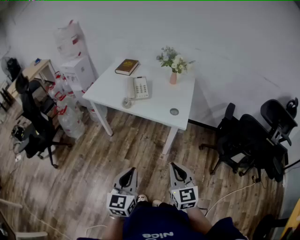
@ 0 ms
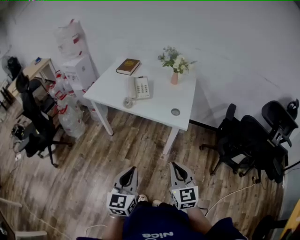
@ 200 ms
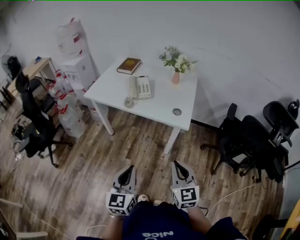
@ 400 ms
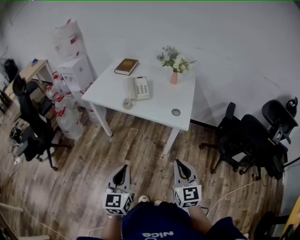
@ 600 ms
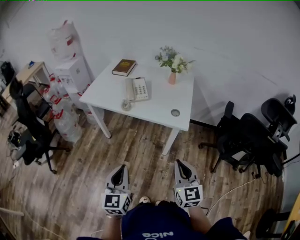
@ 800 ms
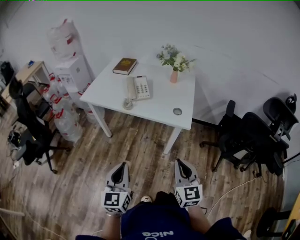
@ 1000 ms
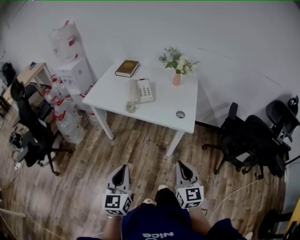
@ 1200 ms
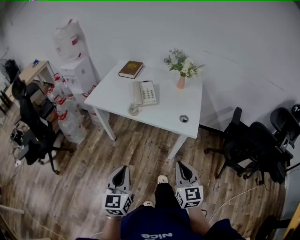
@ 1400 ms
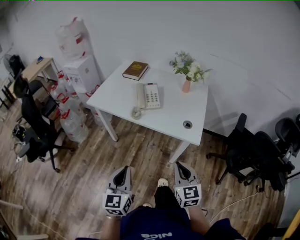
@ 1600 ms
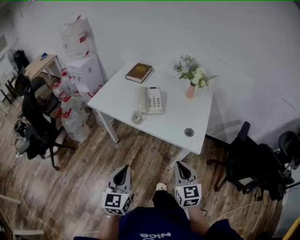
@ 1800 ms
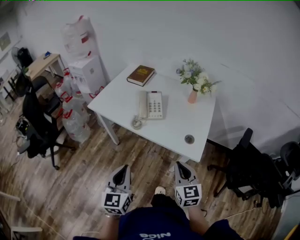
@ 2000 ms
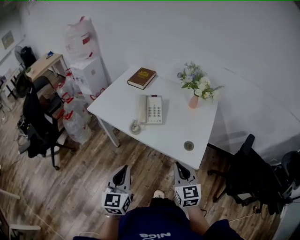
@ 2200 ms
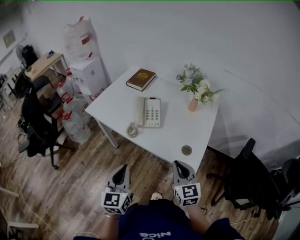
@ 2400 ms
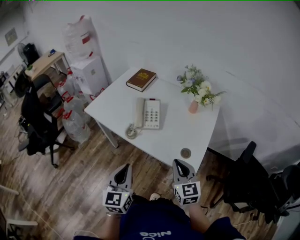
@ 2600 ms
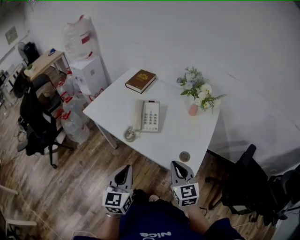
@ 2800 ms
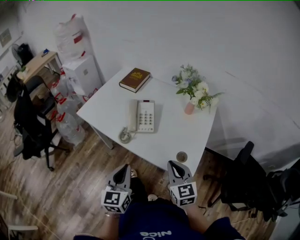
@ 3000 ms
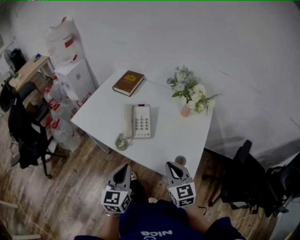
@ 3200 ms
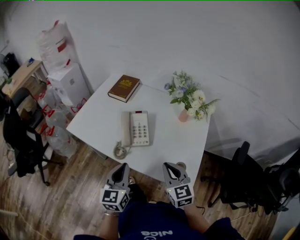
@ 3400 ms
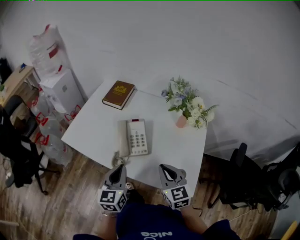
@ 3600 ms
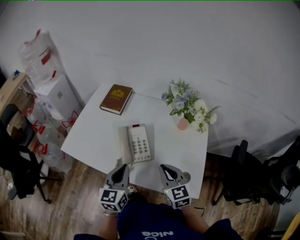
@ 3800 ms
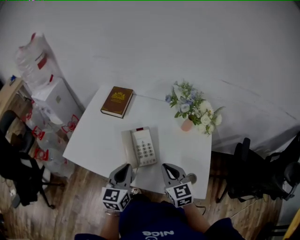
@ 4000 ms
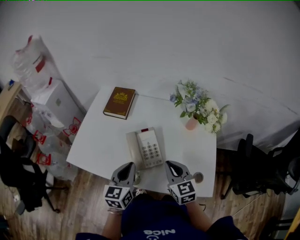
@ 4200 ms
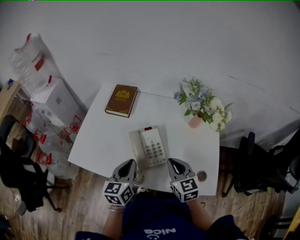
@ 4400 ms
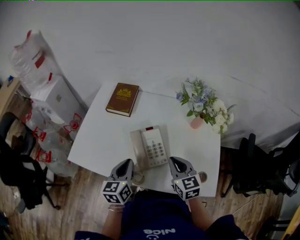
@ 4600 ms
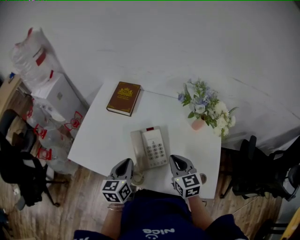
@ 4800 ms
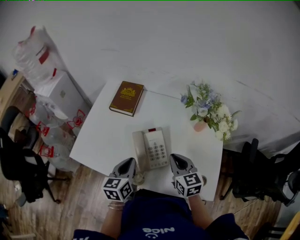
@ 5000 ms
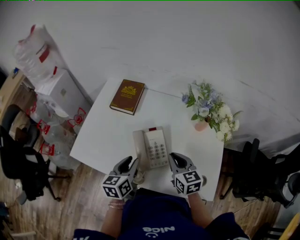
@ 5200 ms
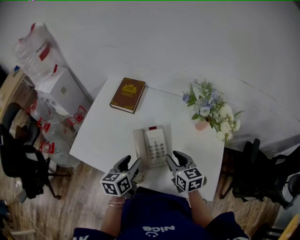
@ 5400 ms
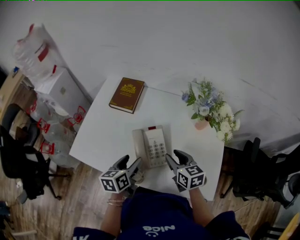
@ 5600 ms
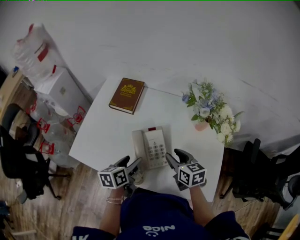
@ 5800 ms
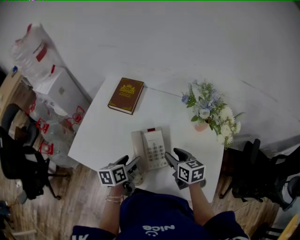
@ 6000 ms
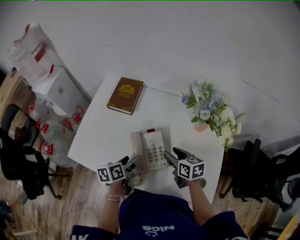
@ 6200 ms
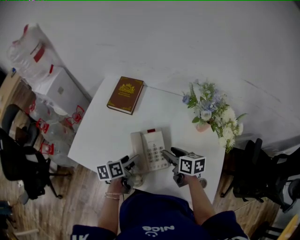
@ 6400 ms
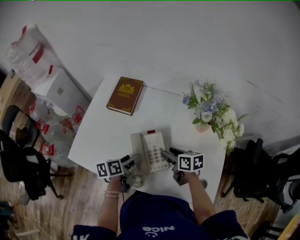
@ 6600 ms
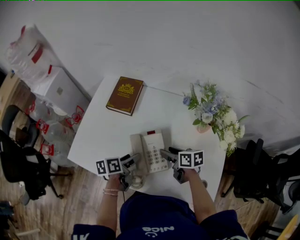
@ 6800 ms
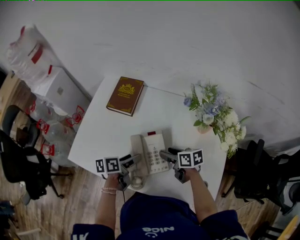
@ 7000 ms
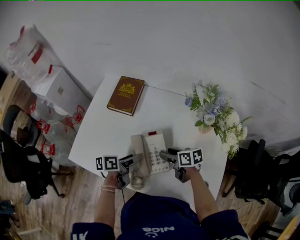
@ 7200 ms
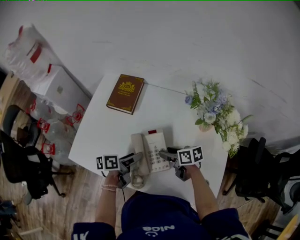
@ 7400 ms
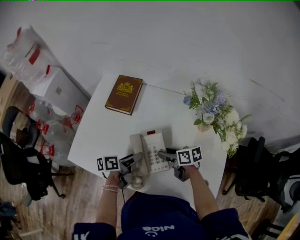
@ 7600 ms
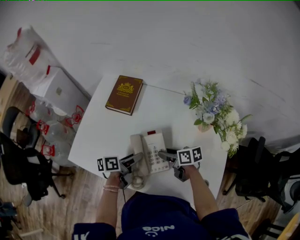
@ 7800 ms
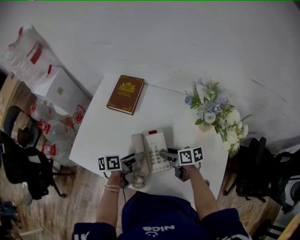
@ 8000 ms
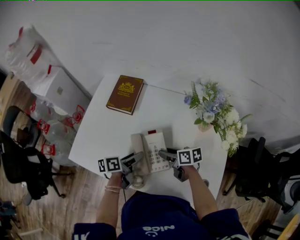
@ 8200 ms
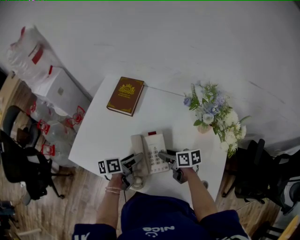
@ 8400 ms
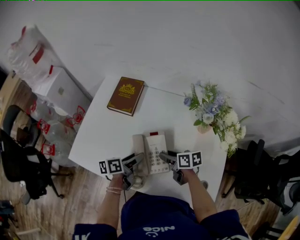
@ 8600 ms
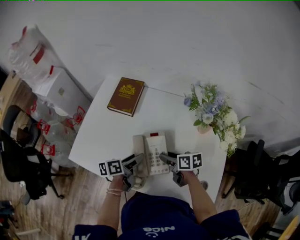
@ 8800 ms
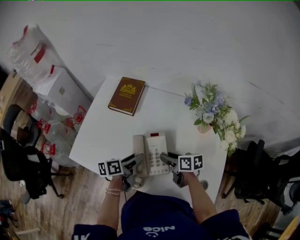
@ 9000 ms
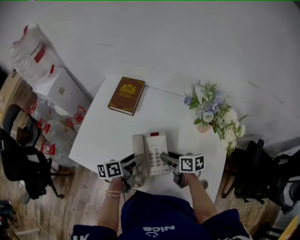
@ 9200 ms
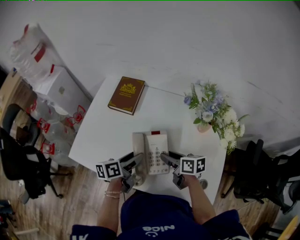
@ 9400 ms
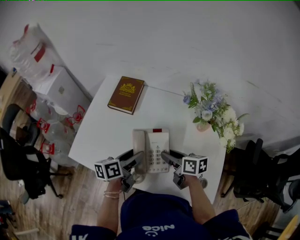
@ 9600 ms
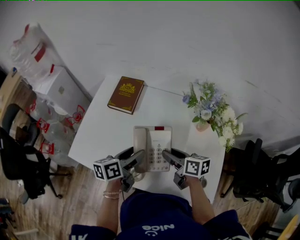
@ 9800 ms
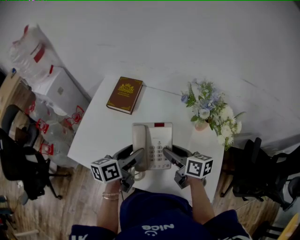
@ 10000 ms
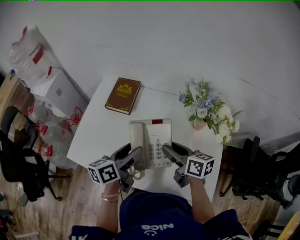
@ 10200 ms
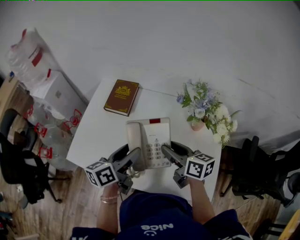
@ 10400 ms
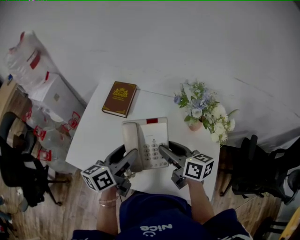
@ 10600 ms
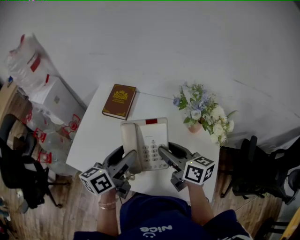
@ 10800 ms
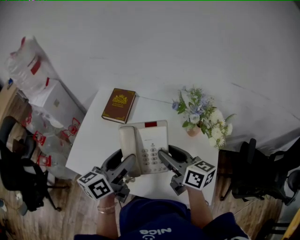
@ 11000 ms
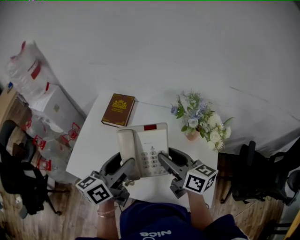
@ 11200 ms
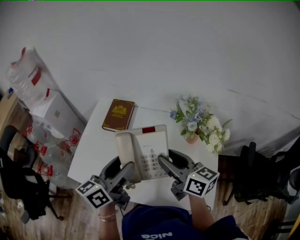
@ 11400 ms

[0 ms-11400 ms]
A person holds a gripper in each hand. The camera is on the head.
0 ms to 1400 ms: The left gripper is displaced to the left and forward by some 10 cm; the right gripper goes some 10 cm forward.
1400 ms to 2800 ms: The left gripper goes some 20 cm forward and to the right, while the right gripper heads forward, covering about 25 cm.
2800 ms to 4200 ms: The left gripper travels forward by some 25 cm, and swivels about 20 degrees; the right gripper heads forward and to the left, covering about 20 cm.
4200 ms to 5600 ms: The right gripper goes some 5 cm forward, turns by about 20 degrees, and opens; the left gripper moves downward, approximately 5 cm, rotates approximately 30 degrees, and opens its fingers.
5600 ms to 7200 ms: The two grippers go roughly 10 cm downward and forward. The right gripper swivels about 30 degrees, and opens up. The left gripper rotates about 30 degrees.
7200 ms to 8600 ms: There are only small adjustments of the grippers.
8600 ms to 10000 ms: Both grippers travel together upward, approximately 10 cm.
10000 ms to 11400 ms: Both grippers travel together upward, approximately 15 cm. The right gripper swivels approximately 20 degrees.

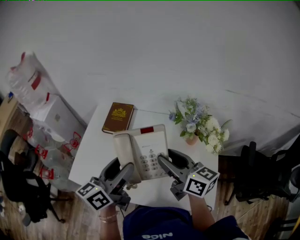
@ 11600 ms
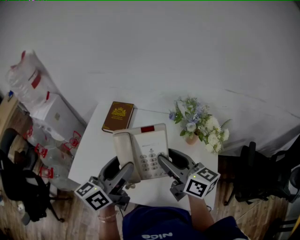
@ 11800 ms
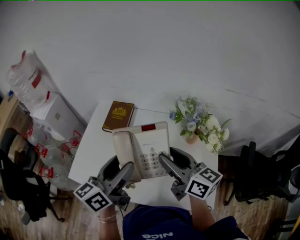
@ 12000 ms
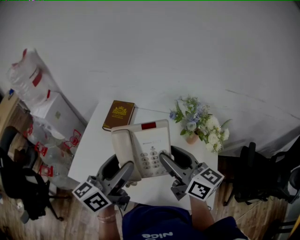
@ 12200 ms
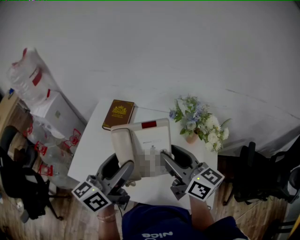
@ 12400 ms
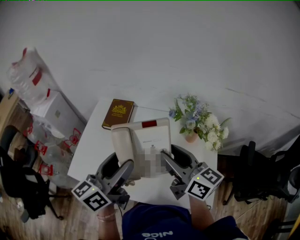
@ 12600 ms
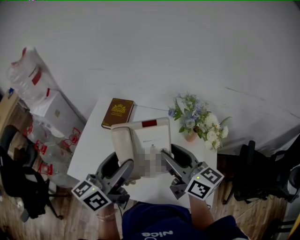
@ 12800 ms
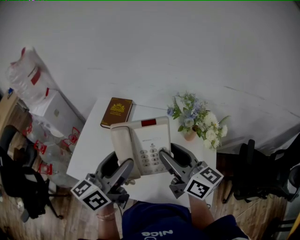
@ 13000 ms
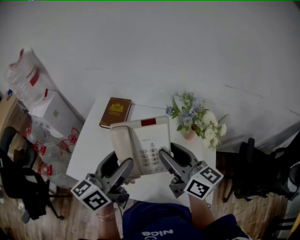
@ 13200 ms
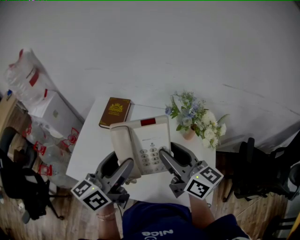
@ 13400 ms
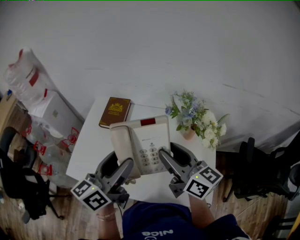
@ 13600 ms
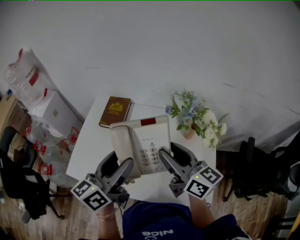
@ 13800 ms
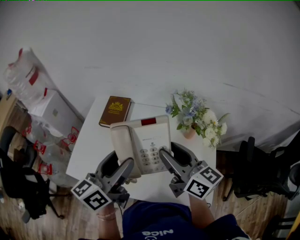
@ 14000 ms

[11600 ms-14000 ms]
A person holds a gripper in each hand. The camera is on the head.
11600 ms to 12800 ms: The grippers move only a little.
12800 ms to 14000 ms: Both grippers stay about where they are.

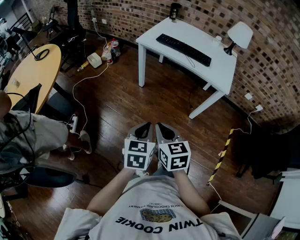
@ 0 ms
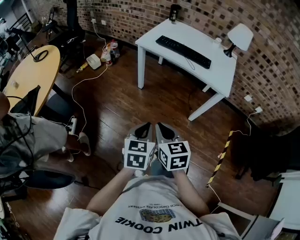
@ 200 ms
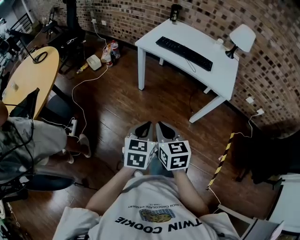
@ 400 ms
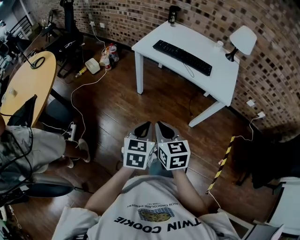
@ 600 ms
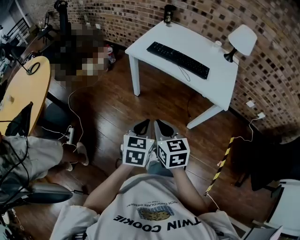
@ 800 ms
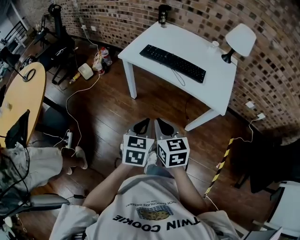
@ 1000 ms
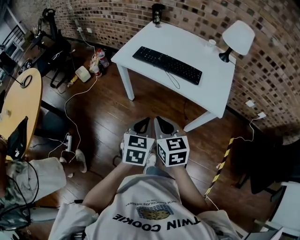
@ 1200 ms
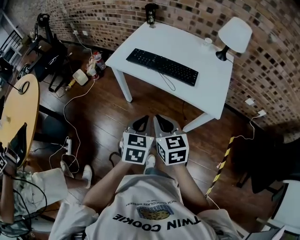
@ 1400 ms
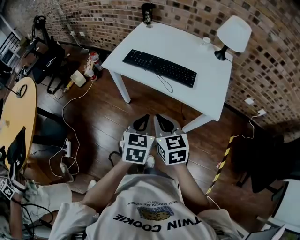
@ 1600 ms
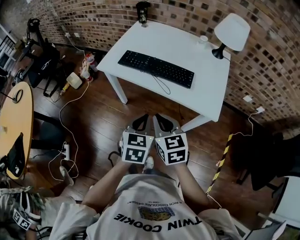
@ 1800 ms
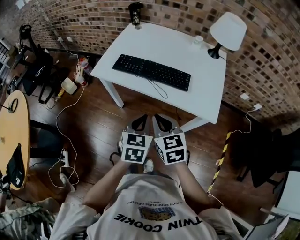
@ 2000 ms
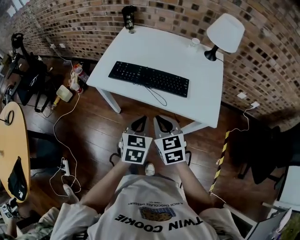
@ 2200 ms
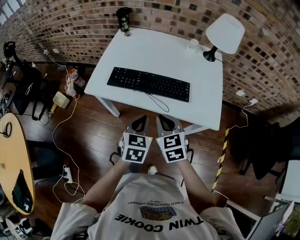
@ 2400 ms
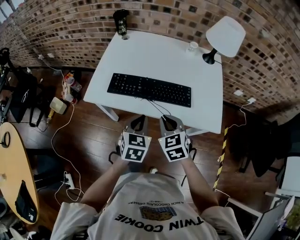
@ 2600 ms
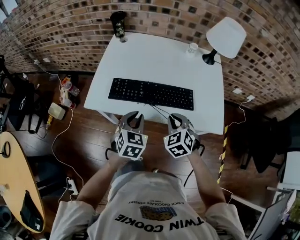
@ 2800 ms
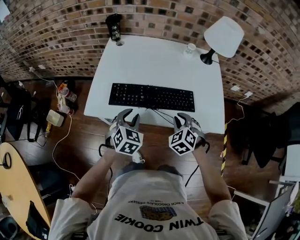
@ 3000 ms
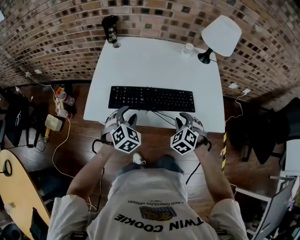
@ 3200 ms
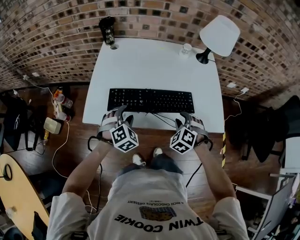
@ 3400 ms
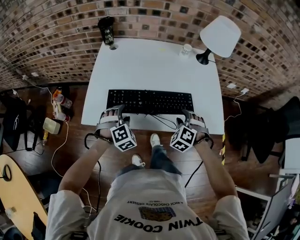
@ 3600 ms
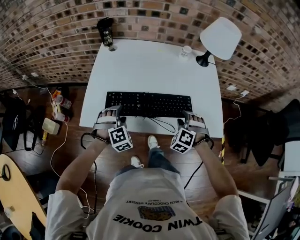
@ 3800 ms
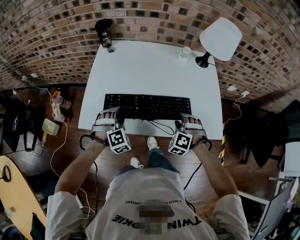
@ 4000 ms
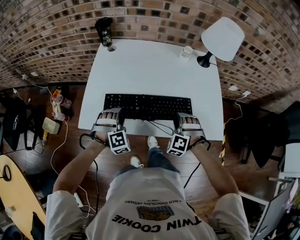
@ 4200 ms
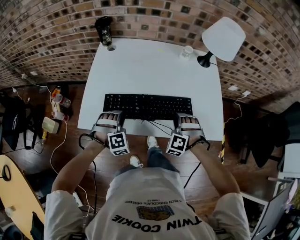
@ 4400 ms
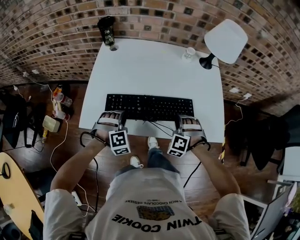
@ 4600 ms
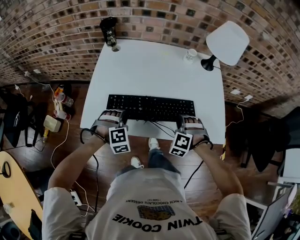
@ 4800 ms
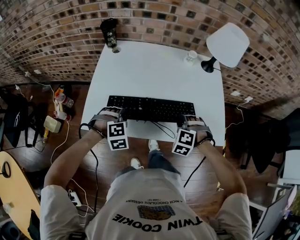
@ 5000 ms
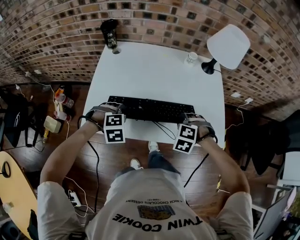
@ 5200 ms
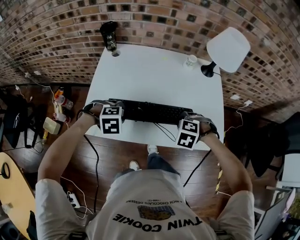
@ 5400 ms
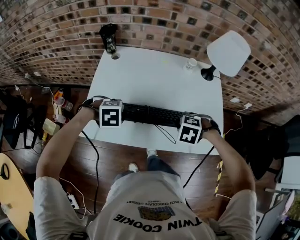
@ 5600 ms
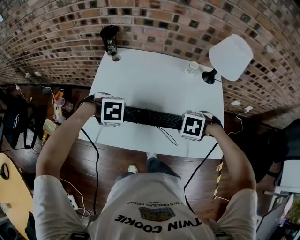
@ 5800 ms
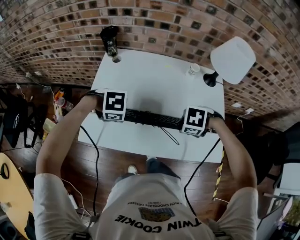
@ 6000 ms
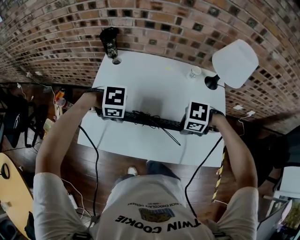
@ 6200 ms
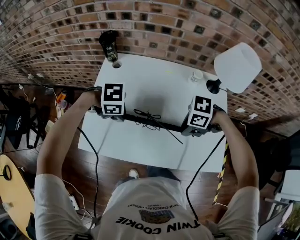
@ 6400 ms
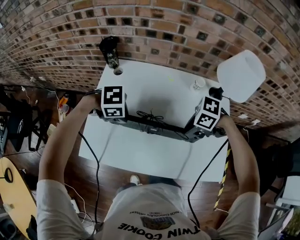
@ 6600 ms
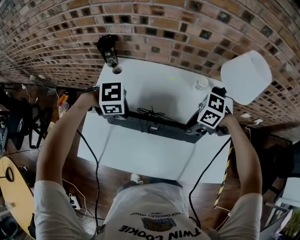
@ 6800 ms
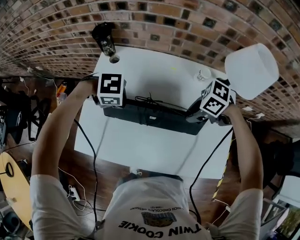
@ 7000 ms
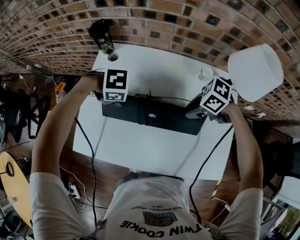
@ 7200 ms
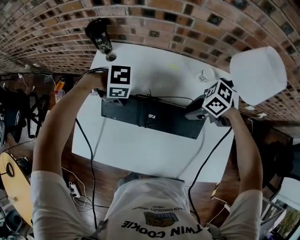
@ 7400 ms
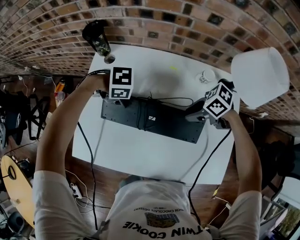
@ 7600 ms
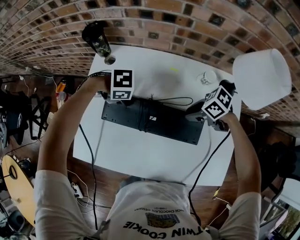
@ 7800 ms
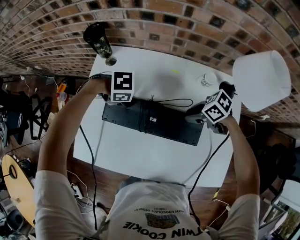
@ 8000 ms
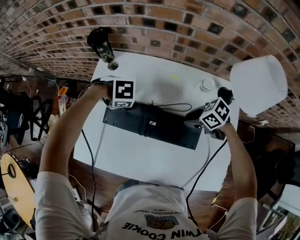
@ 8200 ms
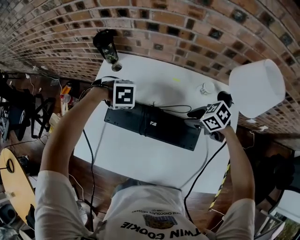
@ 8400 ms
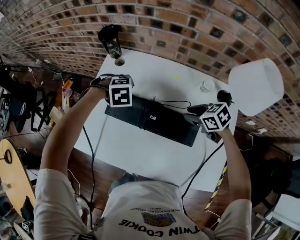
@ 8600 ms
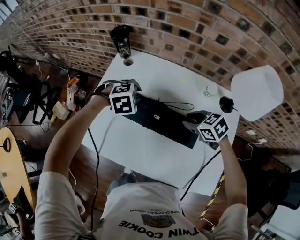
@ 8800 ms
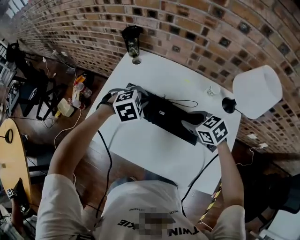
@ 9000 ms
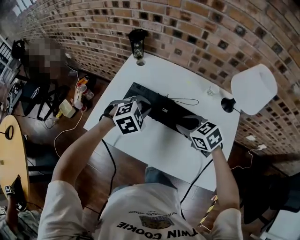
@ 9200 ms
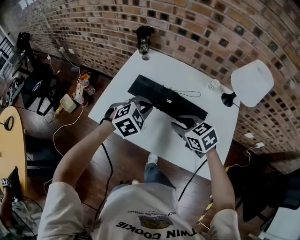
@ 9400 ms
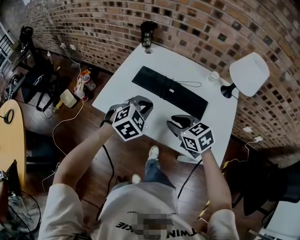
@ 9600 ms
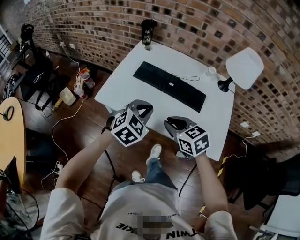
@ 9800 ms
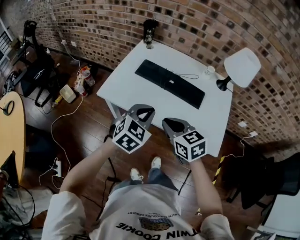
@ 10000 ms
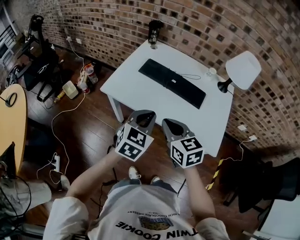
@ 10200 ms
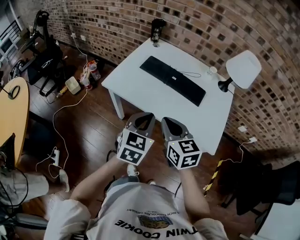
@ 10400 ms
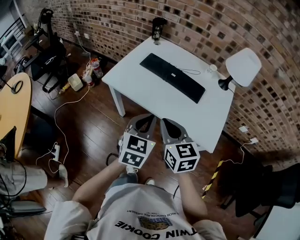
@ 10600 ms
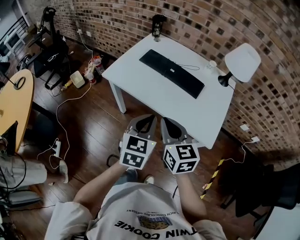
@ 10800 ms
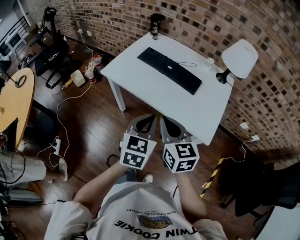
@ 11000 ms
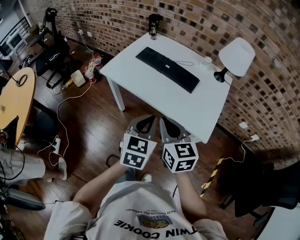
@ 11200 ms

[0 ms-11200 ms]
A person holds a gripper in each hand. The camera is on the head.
0 ms to 1600 ms: Both grippers travel together forward and to the right, about 35 cm.
1600 ms to 3200 ms: The left gripper ends up roughly 35 cm from where it was, twists roughly 40 degrees clockwise, seen from behind, and opens. The right gripper shifts by roughly 25 cm, and swivels about 60 degrees.
3200 ms to 4800 ms: The right gripper is displaced forward by roughly 5 cm, and swivels about 30 degrees; the left gripper is displaced downward by about 5 cm, and changes its angle by roughly 40 degrees.
4800 ms to 6400 ms: The left gripper ends up about 15 cm from where it was, and changes its angle by about 60 degrees, while the right gripper heads upward, covering approximately 10 cm, and changes its angle by approximately 70 degrees.
6400 ms to 8000 ms: The right gripper ends up roughly 15 cm from where it was, and turns by roughly 30 degrees. The left gripper ends up roughly 15 cm from where it was.
8000 ms to 9600 ms: The left gripper ends up approximately 30 cm from where it was, points its fingers roughly 30 degrees further upward, and closes up; the right gripper ends up approximately 30 cm from where it was, and swivels some 40 degrees.
9600 ms to 11200 ms: Both grippers travel together backward, about 25 cm. The left gripper changes its angle by approximately 50 degrees. The right gripper swivels some 30 degrees, and closes.
